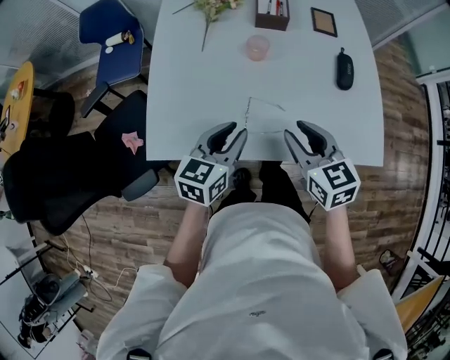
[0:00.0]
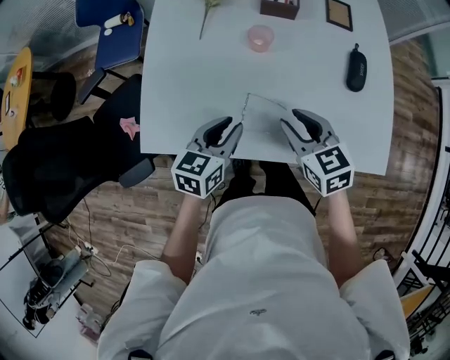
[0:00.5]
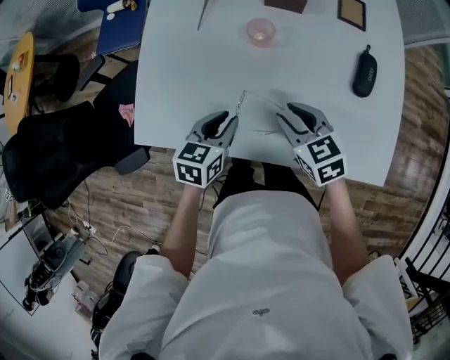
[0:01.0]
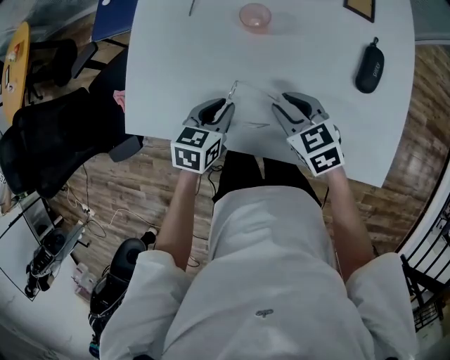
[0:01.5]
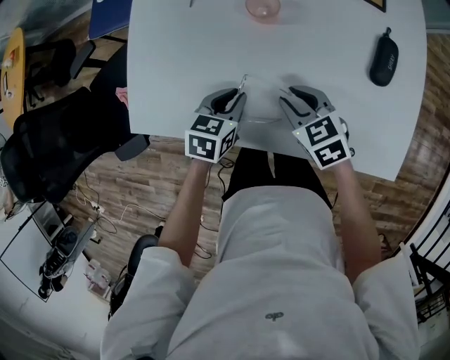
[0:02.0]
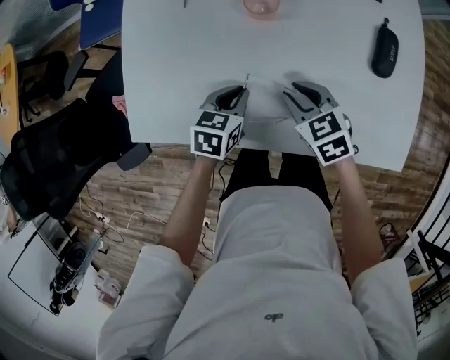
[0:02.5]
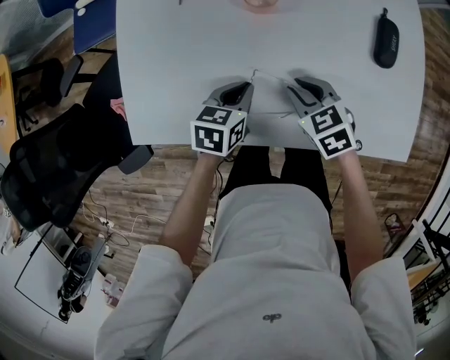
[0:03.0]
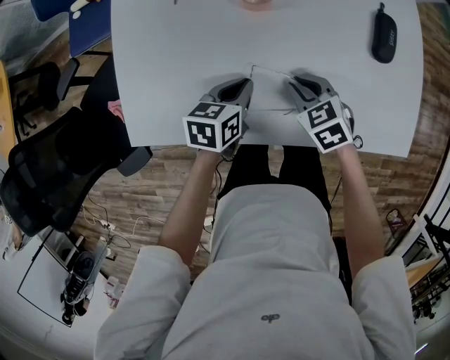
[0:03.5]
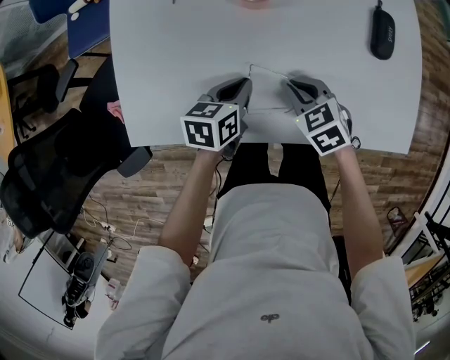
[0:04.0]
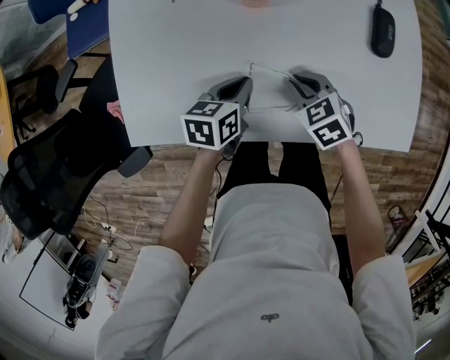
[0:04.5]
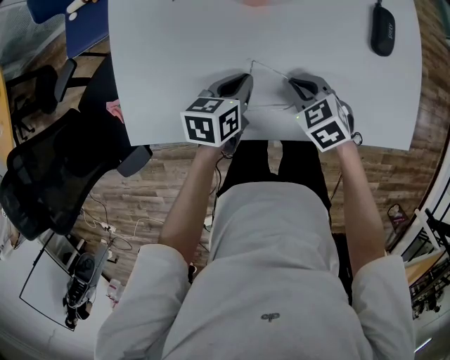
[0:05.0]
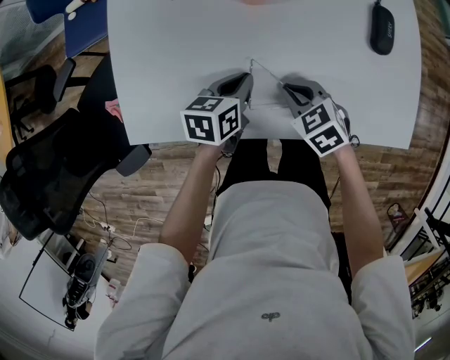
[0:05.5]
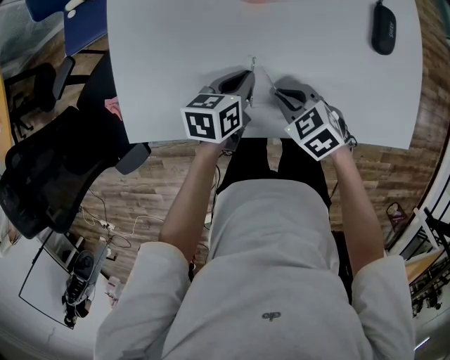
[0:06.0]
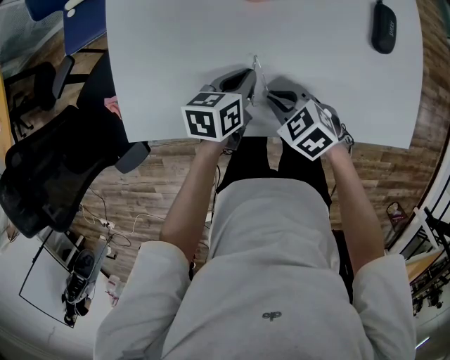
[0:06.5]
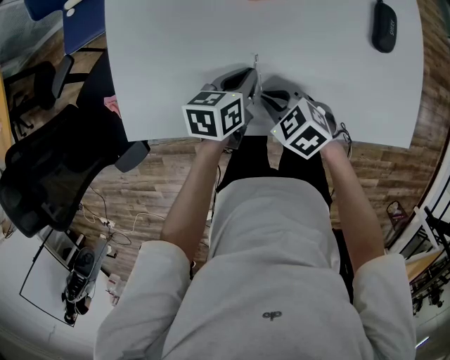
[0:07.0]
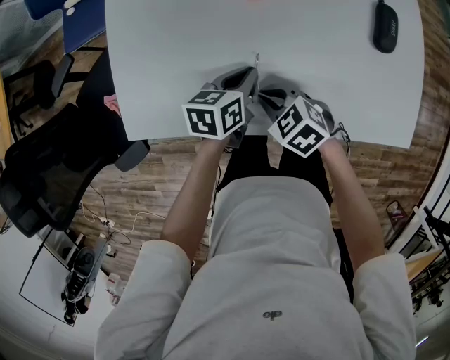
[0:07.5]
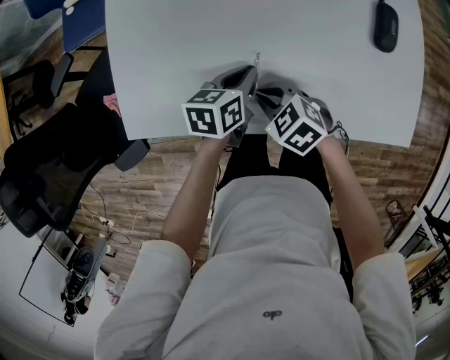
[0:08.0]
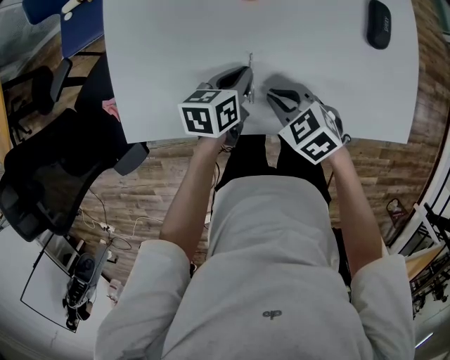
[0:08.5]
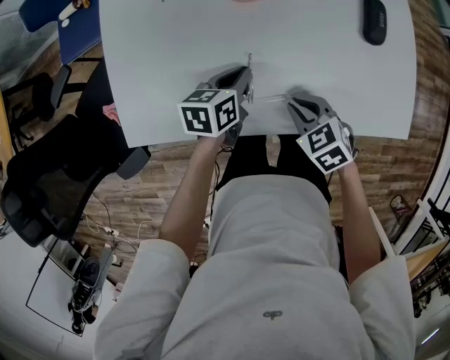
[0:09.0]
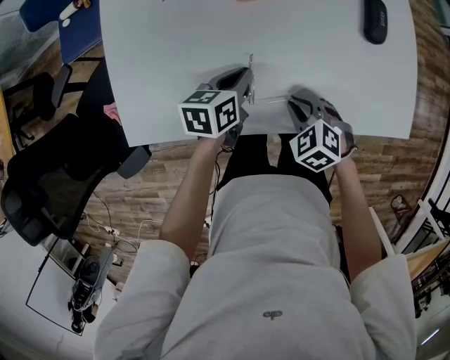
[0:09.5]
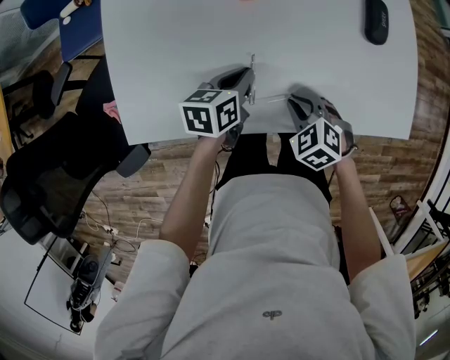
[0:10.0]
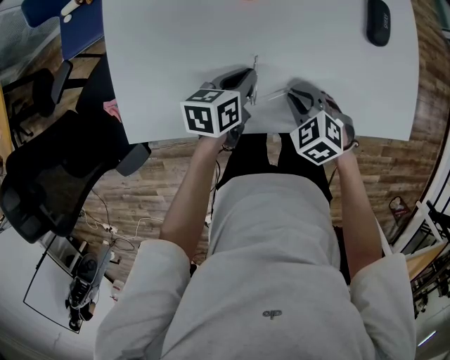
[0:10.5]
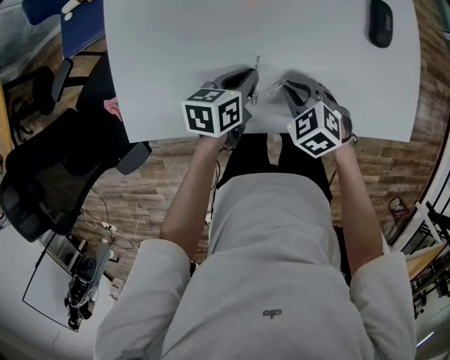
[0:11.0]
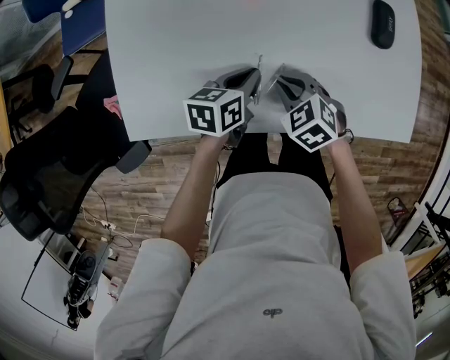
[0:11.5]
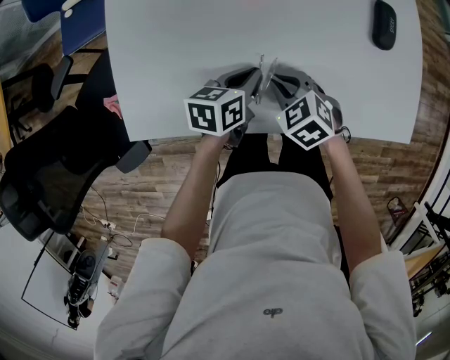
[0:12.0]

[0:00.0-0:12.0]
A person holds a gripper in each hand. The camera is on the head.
0:00.0 to 0:02.0: The grippers both shift downward and forward by about 20 cm. The right gripper changes its angle by about 30 degrees; the left gripper turns by roughly 30 degrees.
0:02.0 to 0:04.0: The right gripper closes up.
0:04.0 to 0:06.0: The right gripper changes place by roughly 5 cm.
0:06.0 to 0:08.0: The right gripper shifts some 5 cm to the left.
0:08.0 to 0:10.0: The right gripper travels to the right by about 10 cm.
0:10.0 to 0:12.0: The right gripper goes roughly 10 cm to the left and forward.

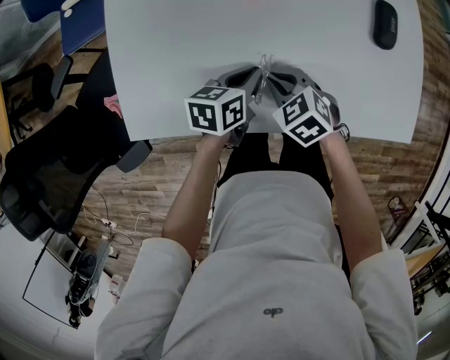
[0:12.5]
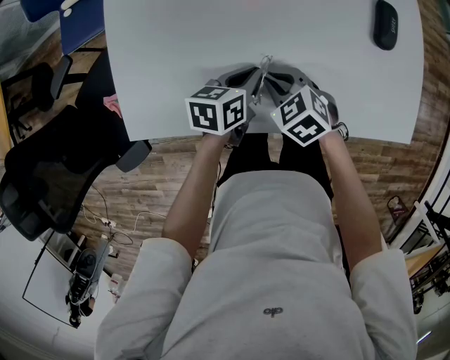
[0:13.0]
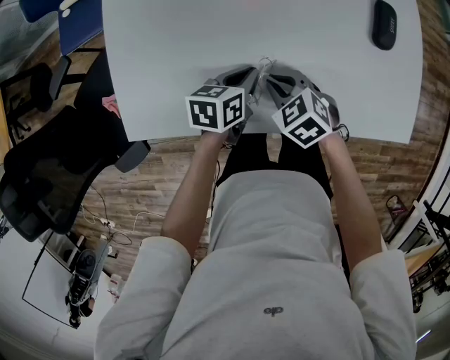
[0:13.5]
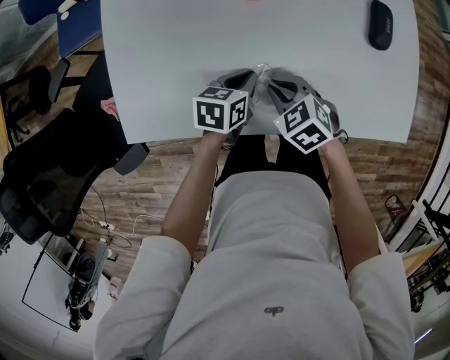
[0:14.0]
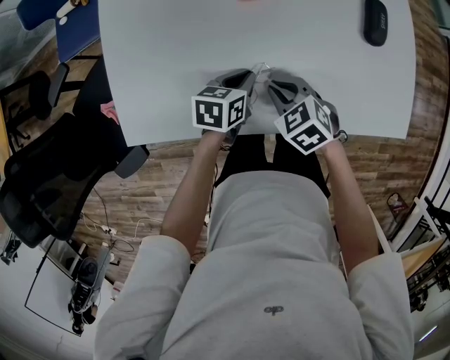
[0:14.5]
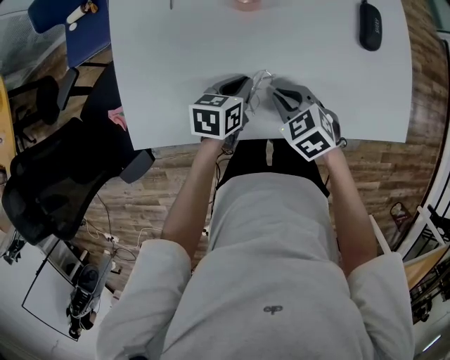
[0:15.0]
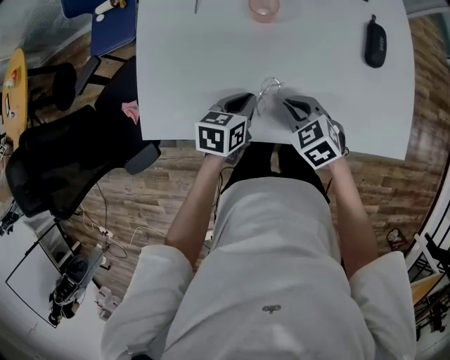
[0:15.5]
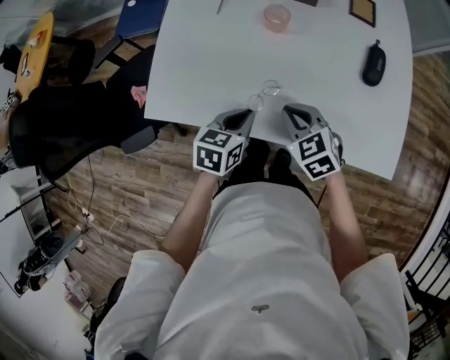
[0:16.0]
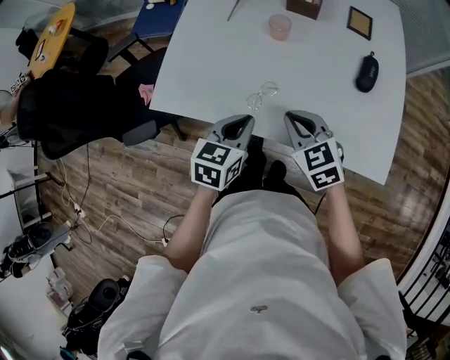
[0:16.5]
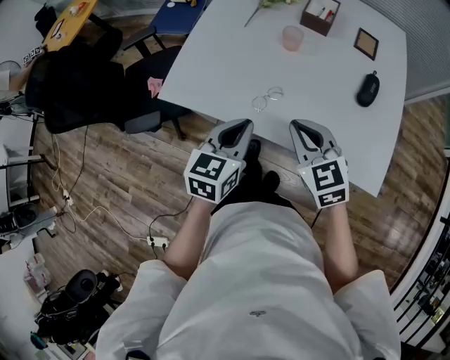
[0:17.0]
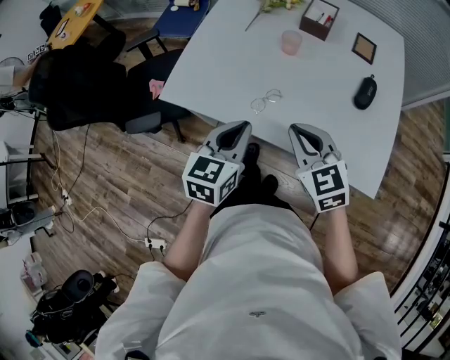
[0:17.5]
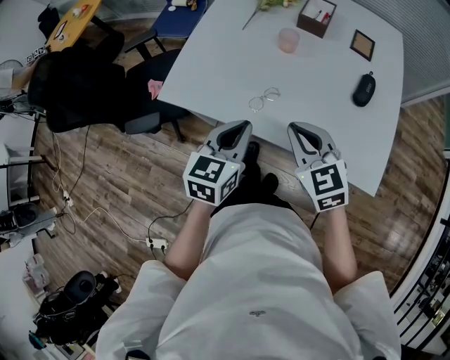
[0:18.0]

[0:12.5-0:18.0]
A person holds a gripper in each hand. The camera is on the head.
0:12.5 to 0:14.5: There are only small adjustments of the grippers.
0:14.5 to 0:16.0: The right gripper travels upward by about 10 cm, while the left gripper travels upward and backward by approximately 15 cm.
0:16.0 to 0:18.0: The grippers both shift upward and backward by approximately 15 cm. The left gripper turns by some 30 degrees.

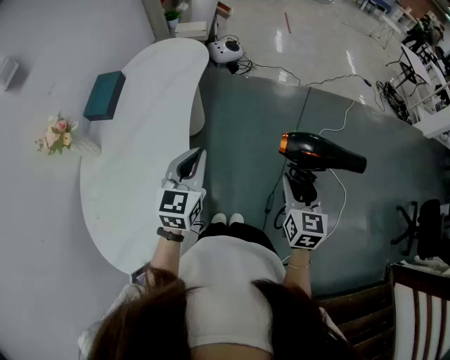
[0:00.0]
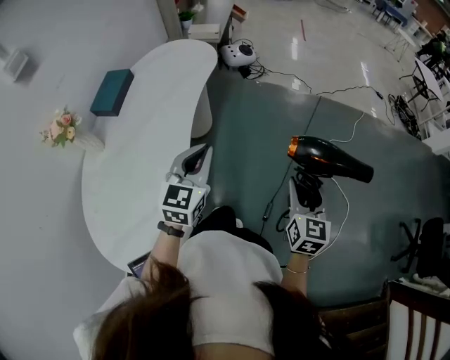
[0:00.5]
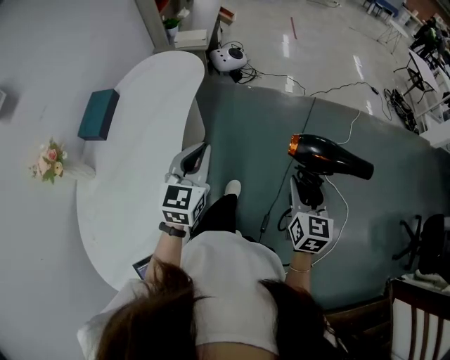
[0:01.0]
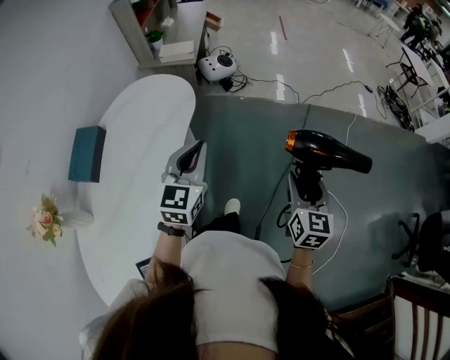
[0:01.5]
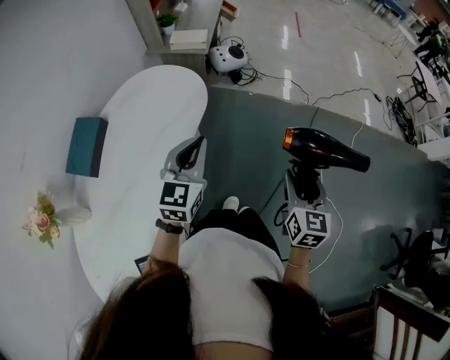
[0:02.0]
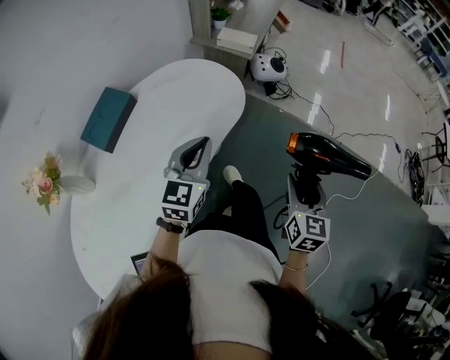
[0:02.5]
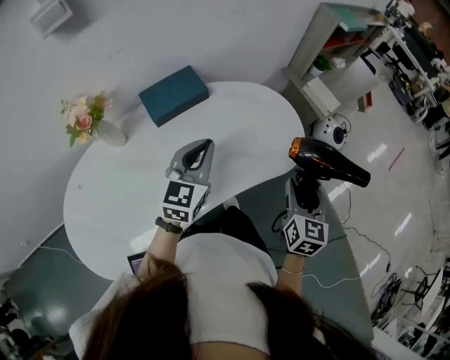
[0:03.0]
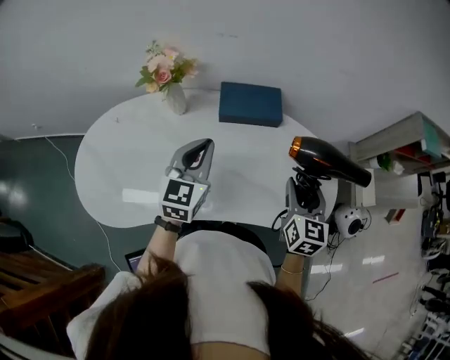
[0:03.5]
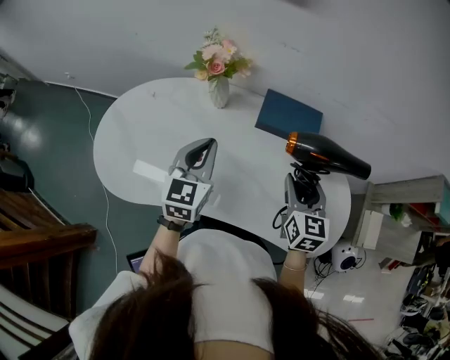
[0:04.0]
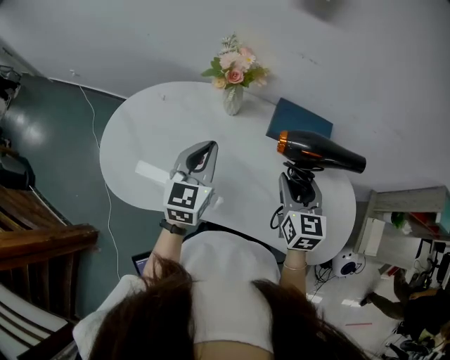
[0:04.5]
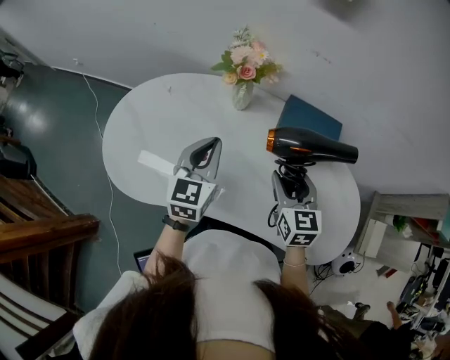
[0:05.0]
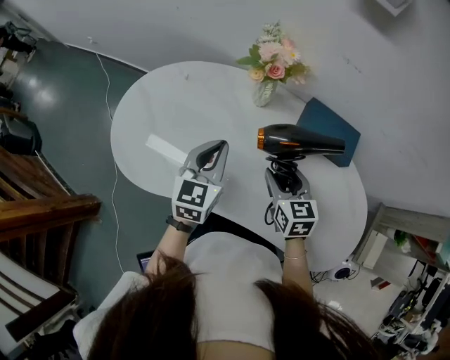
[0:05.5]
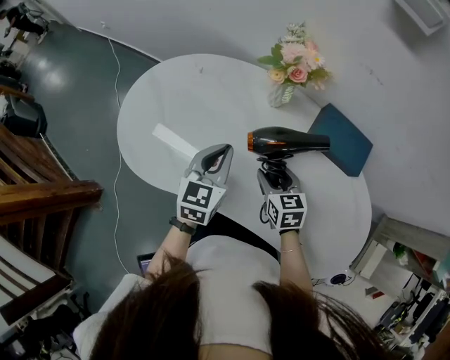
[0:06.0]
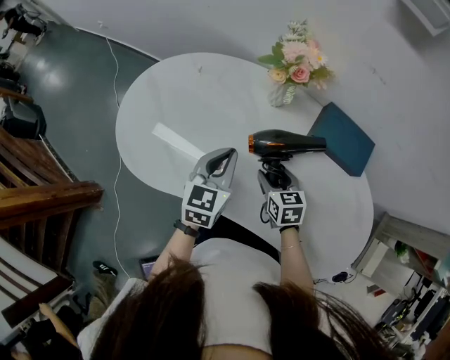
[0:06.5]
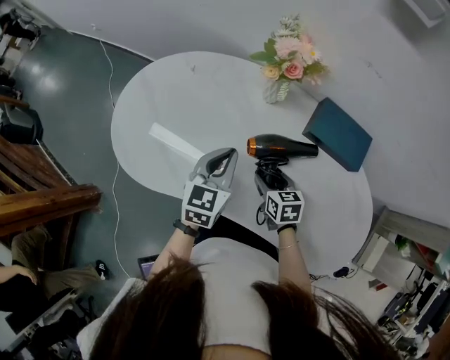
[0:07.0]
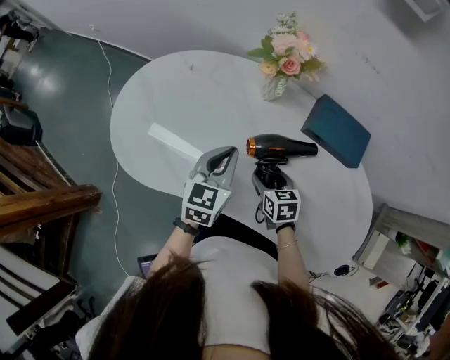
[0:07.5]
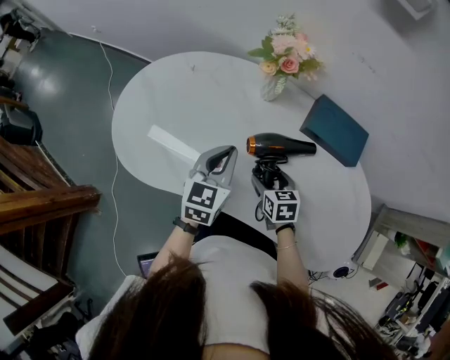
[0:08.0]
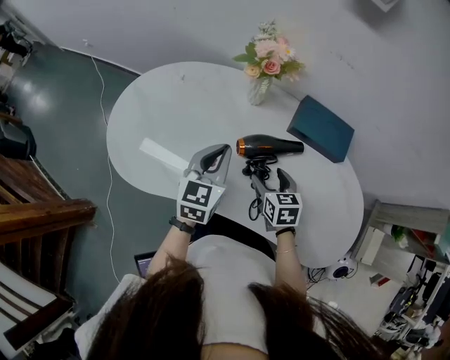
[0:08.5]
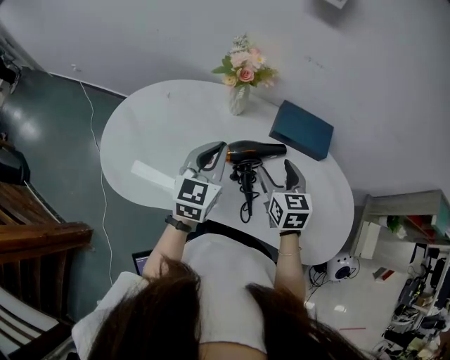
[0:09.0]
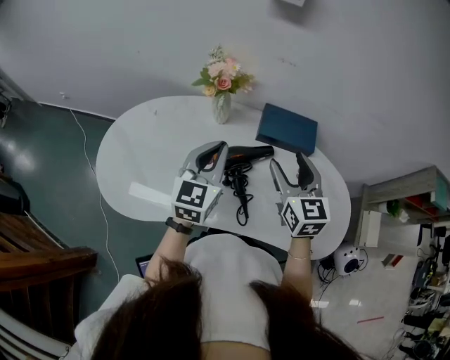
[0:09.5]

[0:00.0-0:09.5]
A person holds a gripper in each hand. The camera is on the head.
0:00.0 to 0:02.0: The grippers both shift forward by some 30 cm.
0:02.0 to 0:04.0: The right gripper ends up approximately 60 cm from where it was, and turns by some 100 degrees, while the left gripper shifts by roughly 35 cm, and turns by some 100 degrees.
0:04.0 to 0:05.5: The left gripper shifts approximately 10 cm to the left. Meanwhile the right gripper heads to the left and downward, covering about 20 cm, and turns by about 30 degrees.
0:05.5 to 0:07.5: The right gripper moves downward, approximately 15 cm, while the left gripper shifts roughly 5 cm downward.
0:07.5 to 0:09.5: The left gripper goes some 15 cm upward and to the right, and changes its angle by roughly 20 degrees; the right gripper is displaced upward and to the right by roughly 30 cm, and tips its fingers upward by some 30 degrees.
